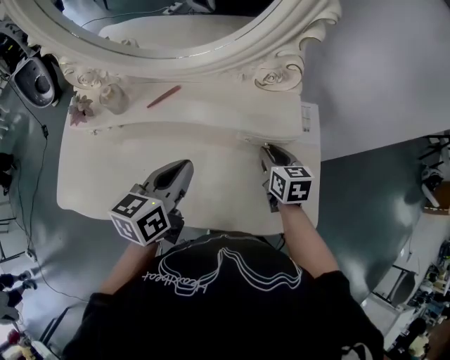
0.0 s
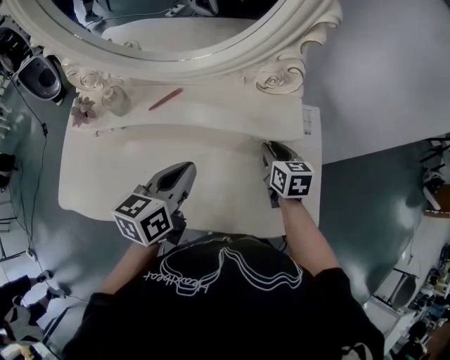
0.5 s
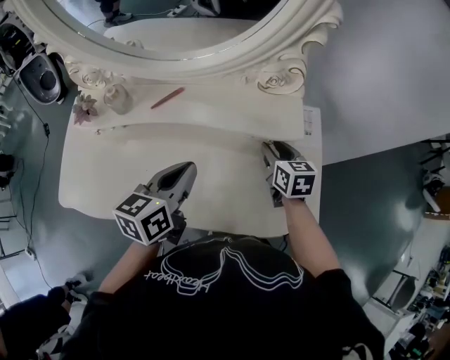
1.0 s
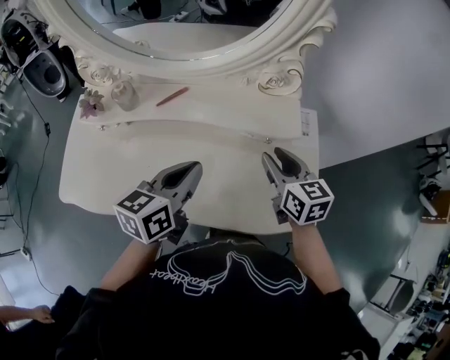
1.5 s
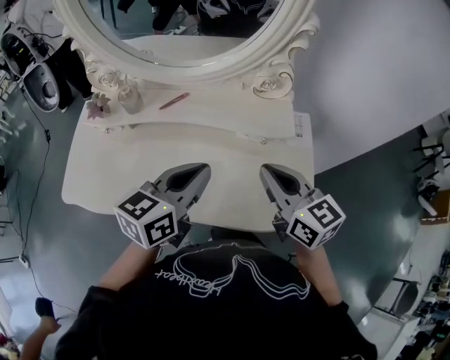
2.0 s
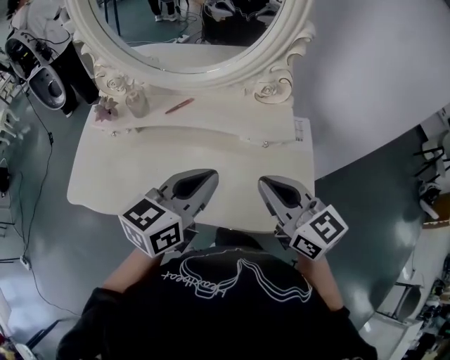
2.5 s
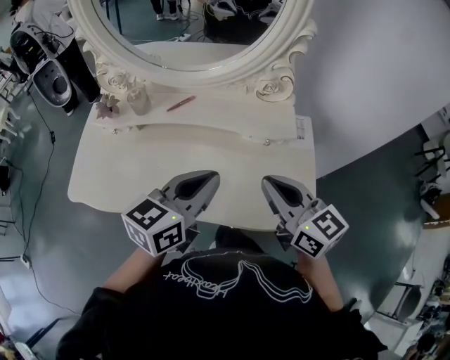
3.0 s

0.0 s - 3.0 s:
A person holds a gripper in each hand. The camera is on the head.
0.0 s - 1.5 s: The right gripper travels upward by approximately 10 cm.
1.5 s - 3.0 s: The left gripper travels upward and backward by about 10 cm. The right gripper moves backward and upward, approximately 15 cm, changes its angle by about 20 degrees, and closes.

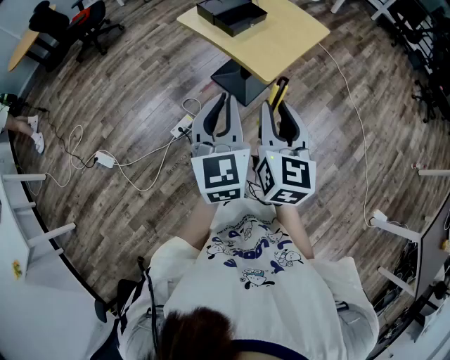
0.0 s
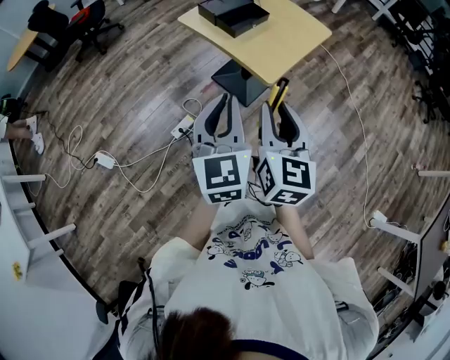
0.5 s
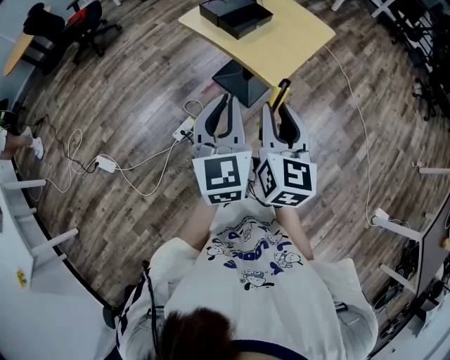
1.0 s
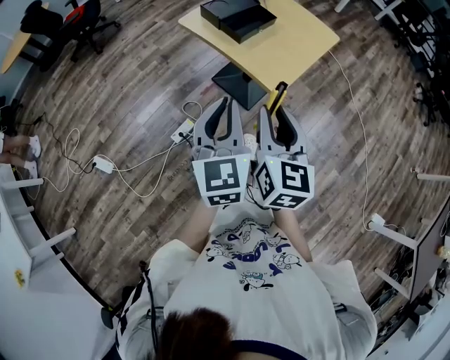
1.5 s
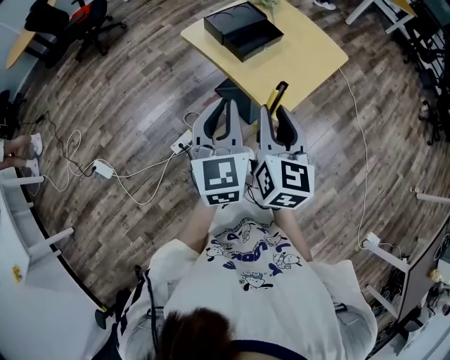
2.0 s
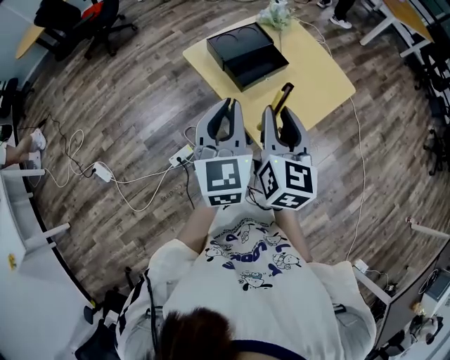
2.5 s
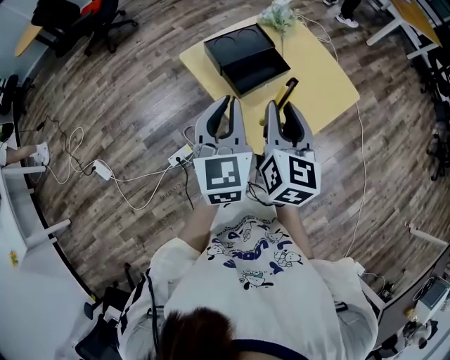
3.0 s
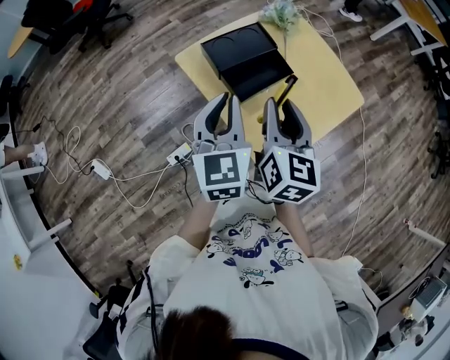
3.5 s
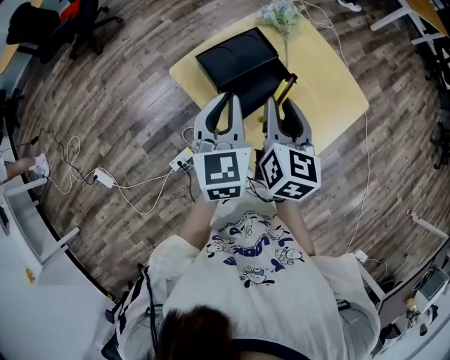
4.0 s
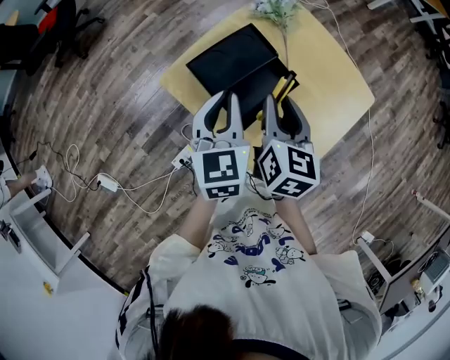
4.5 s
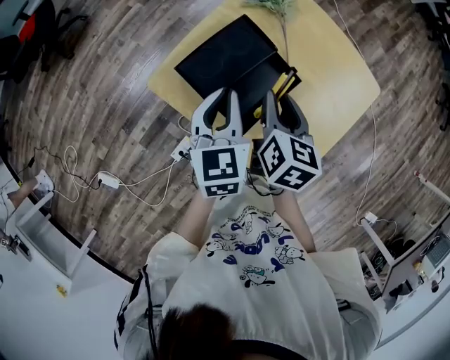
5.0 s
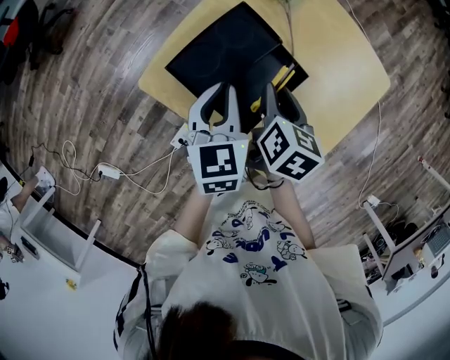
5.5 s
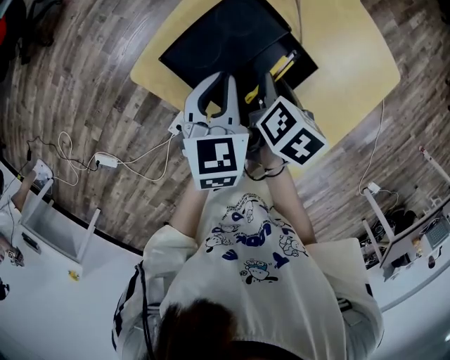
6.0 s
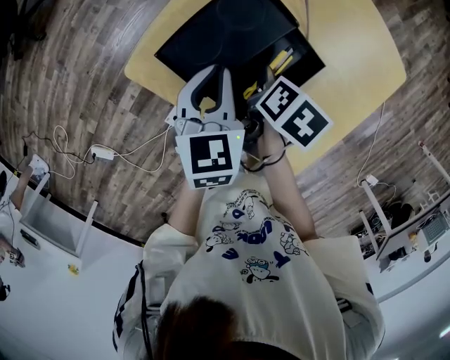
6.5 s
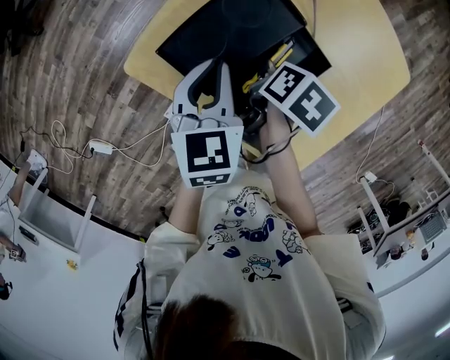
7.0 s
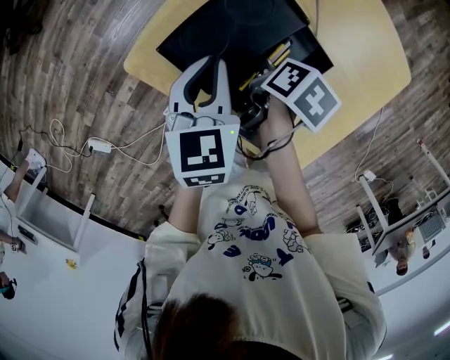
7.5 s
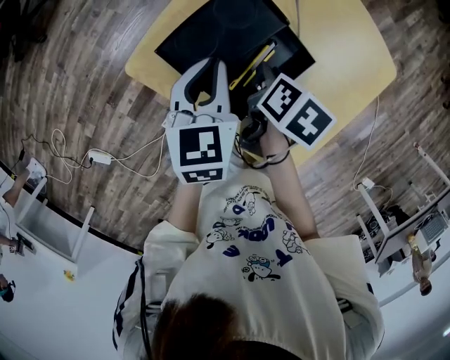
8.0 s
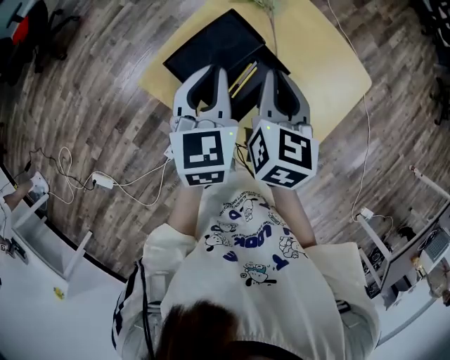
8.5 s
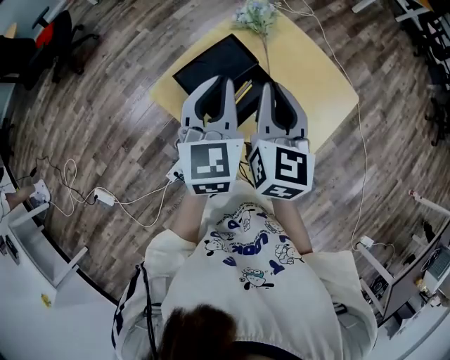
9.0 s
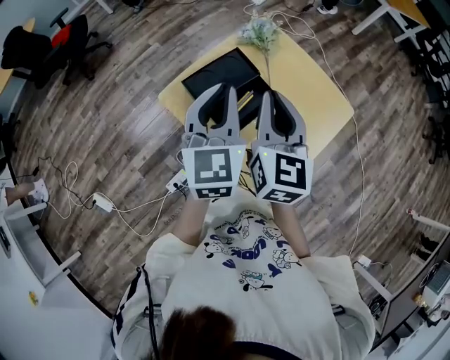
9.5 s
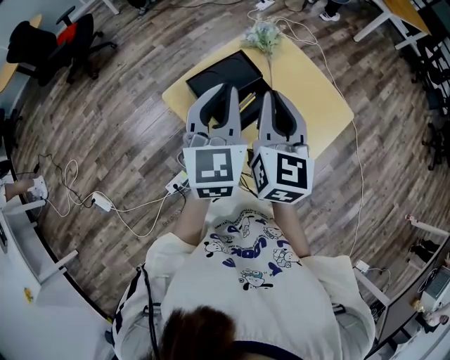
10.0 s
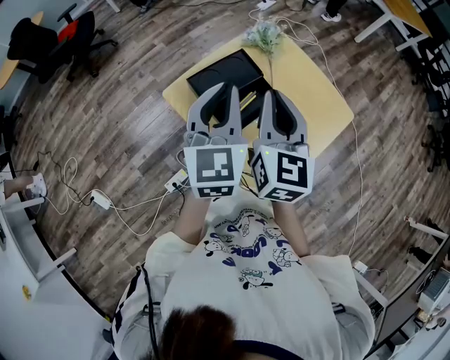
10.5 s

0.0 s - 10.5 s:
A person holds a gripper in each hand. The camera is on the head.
0.0 s - 2.0 s: The two grippers go approximately 15 cm forward.
2.0 s - 4.0 s: Both grippers move forward, some 30 cm.
4.0 s - 6.5 s: The right gripper shifts some 25 cm downward, and points its fingers approximately 50 degrees further downward. The left gripper moves downward and forward, some 20 cm, and changes its angle by approximately 30 degrees.
6.5 s - 8.5 s: The right gripper goes approximately 20 cm upward, and points its fingers roughly 40 degrees further upward. The left gripper travels upward by some 15 cm.
8.5 s - 10.5 s: The grippers both shift upward and backward by some 15 cm. The right gripper swivels approximately 20 degrees.

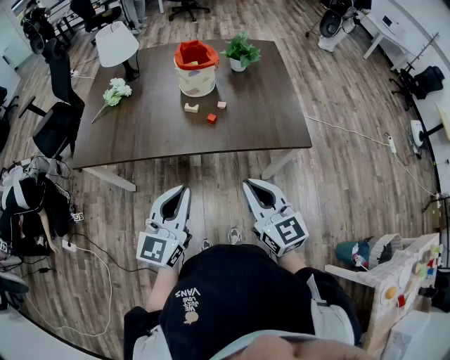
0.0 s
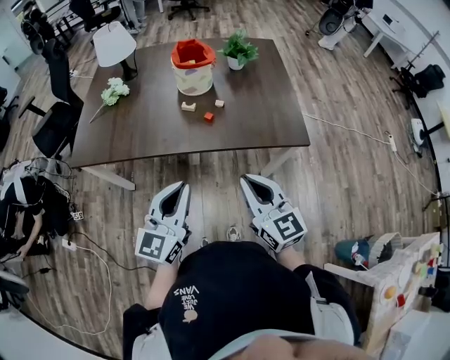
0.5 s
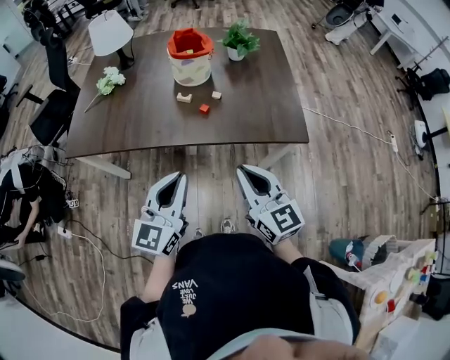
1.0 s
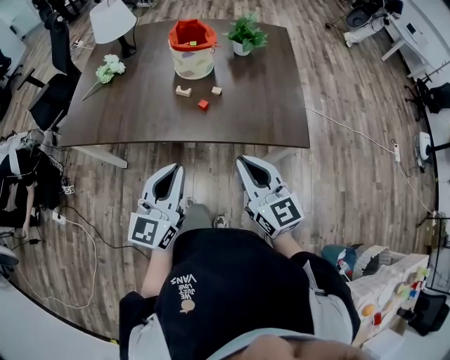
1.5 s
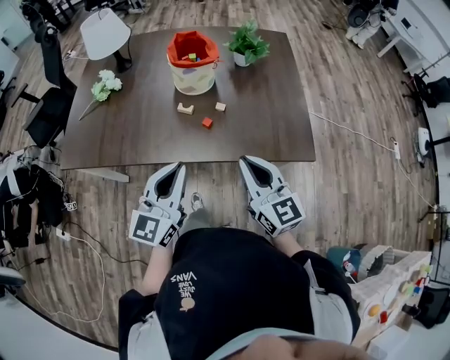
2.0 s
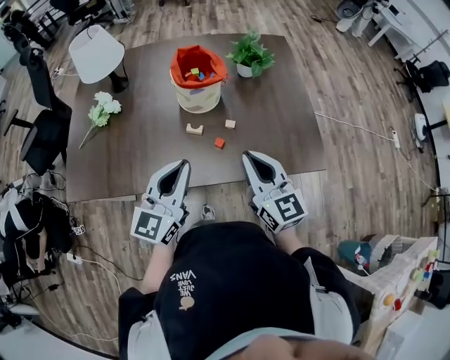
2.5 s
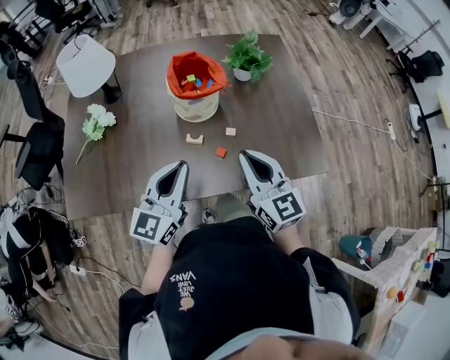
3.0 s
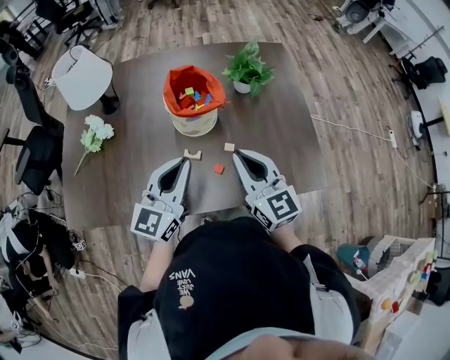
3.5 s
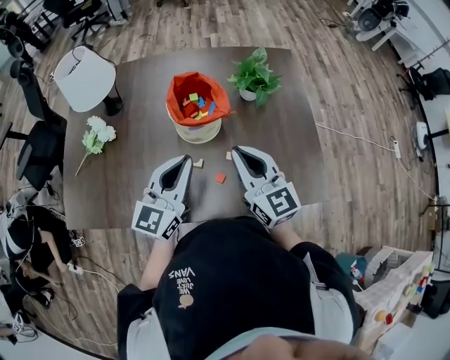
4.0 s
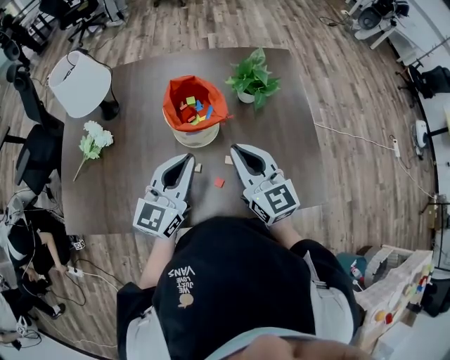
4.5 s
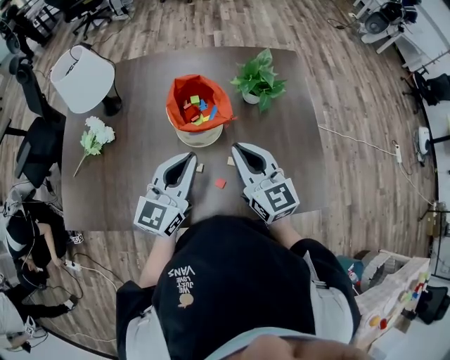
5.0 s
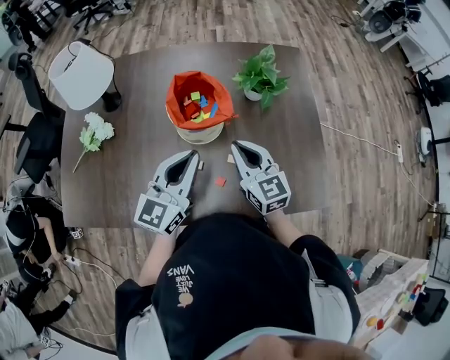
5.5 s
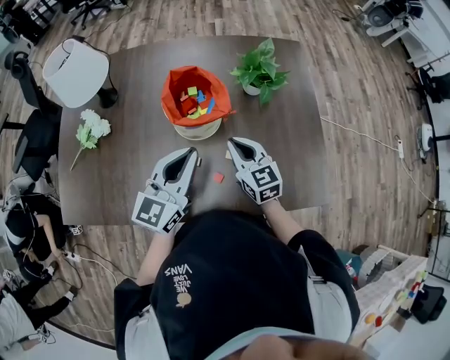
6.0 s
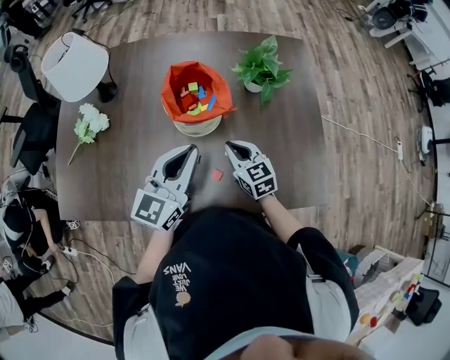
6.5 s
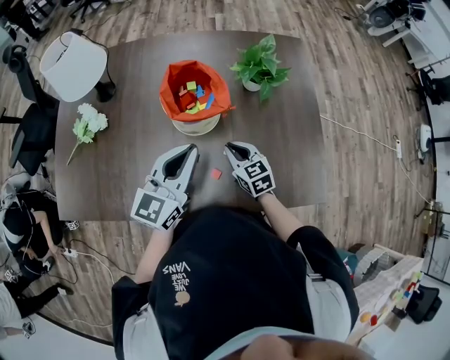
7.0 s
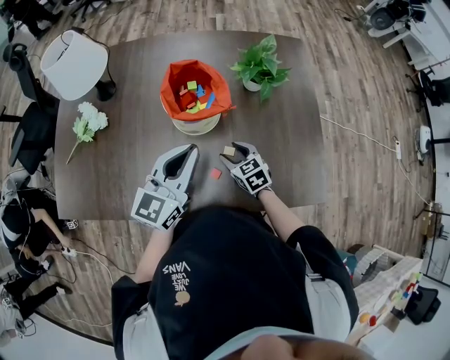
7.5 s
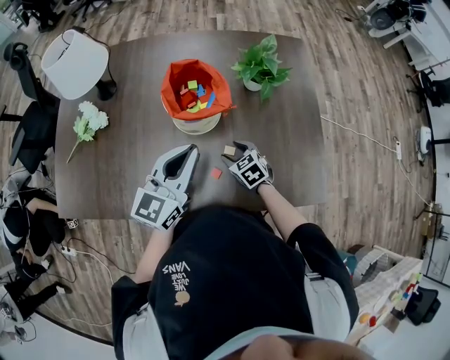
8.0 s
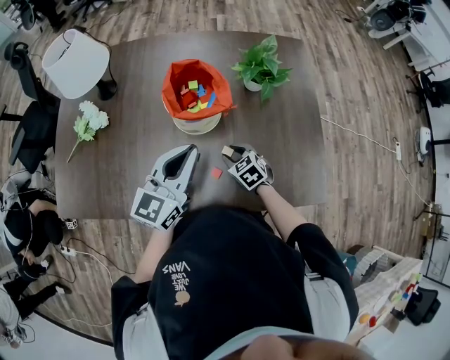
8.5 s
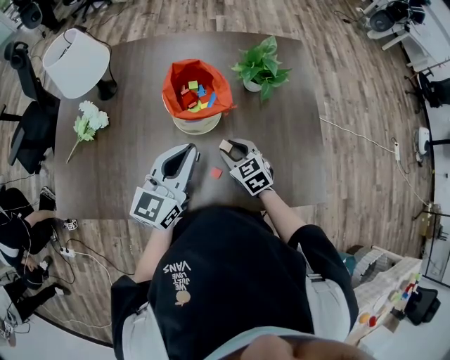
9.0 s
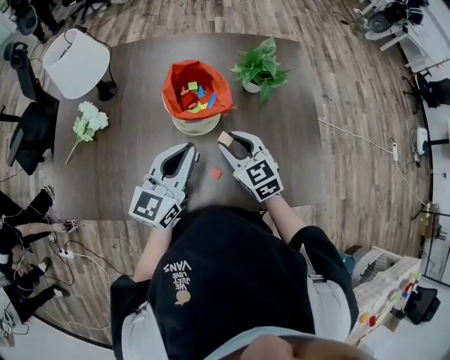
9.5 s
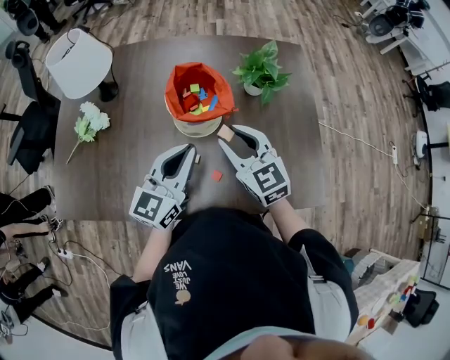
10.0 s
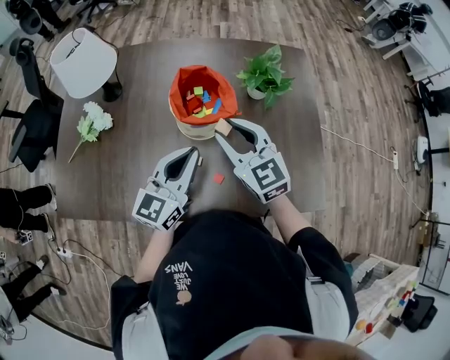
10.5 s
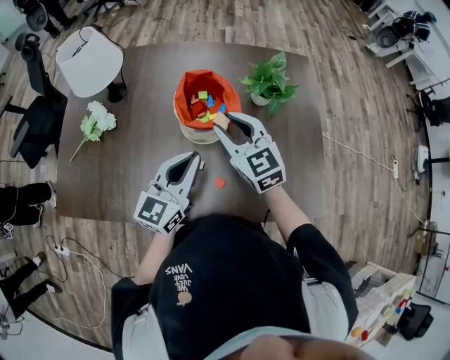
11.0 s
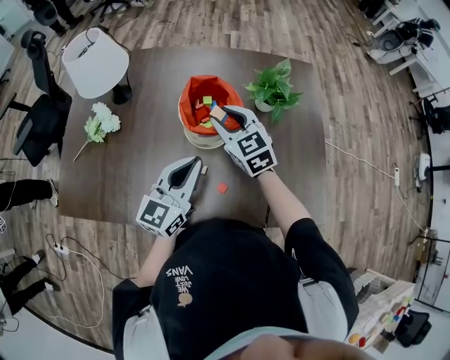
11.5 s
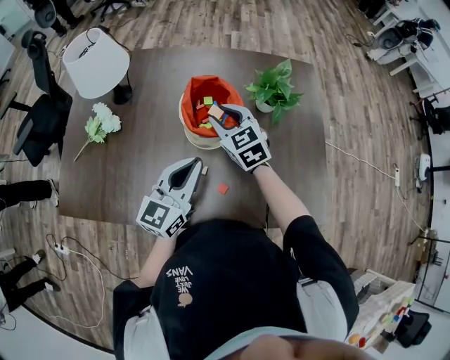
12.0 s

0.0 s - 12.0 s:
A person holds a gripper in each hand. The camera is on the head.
0.0 s - 2.0 s: The two grippers go some 15 cm forward.
2.0 s - 4.0 s: Both grippers travel together forward, approximately 25 cm.
4.0 s - 6.0 s: The right gripper shifts approximately 15 cm downward and forward; the left gripper changes place by approximately 5 cm.
6.0 s - 8.0 s: The right gripper is displaced downward by some 15 cm, tilts its fingers roughly 30 degrees downward, and opens its fingers.
8.0 s - 10.0 s: The right gripper moves upward, roughly 25 cm, points its fingers roughly 30 degrees further upward, and closes its fingers.
10.0 s - 12.0 s: The right gripper is displaced forward and to the left by roughly 10 cm.

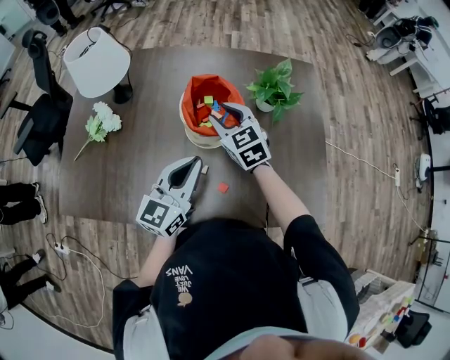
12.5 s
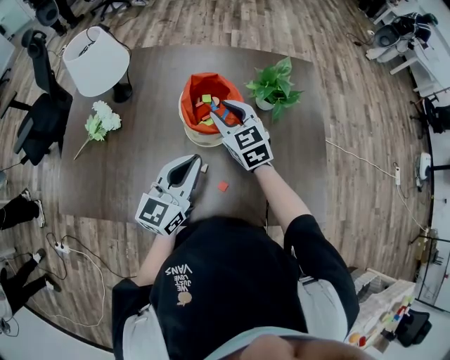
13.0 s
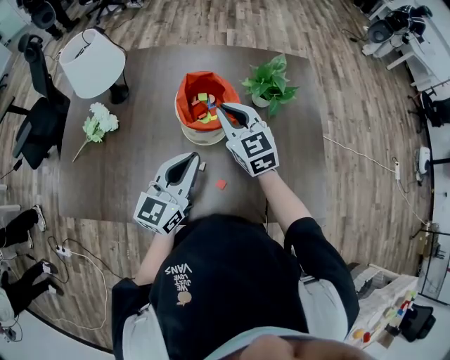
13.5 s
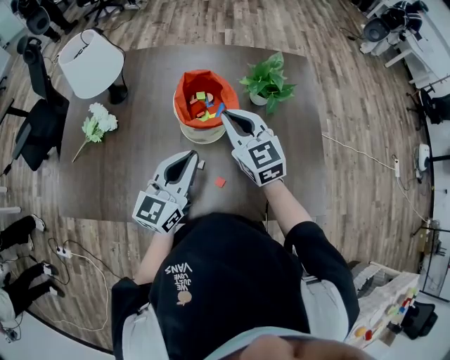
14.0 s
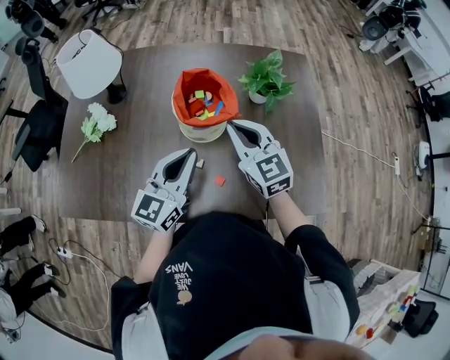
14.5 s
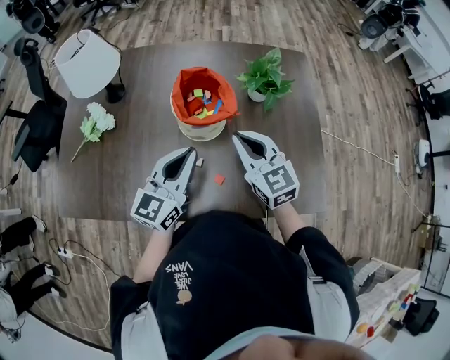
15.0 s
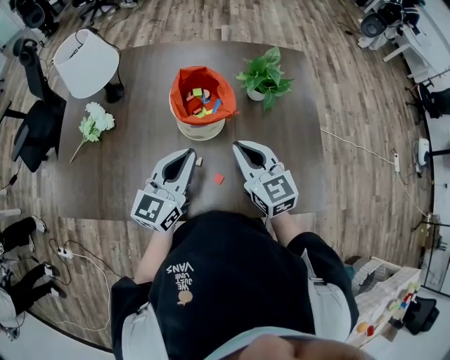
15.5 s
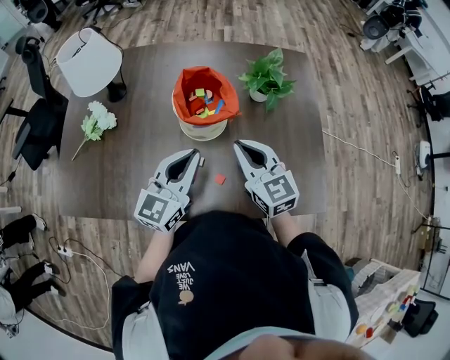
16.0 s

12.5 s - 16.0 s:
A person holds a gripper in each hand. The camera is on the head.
12.5 s - 14.5 s: The right gripper moves backward, upward and to the right, approximately 10 cm, and closes its fingers.
14.5 s - 16.0 s: The right gripper changes place by roughly 5 cm.
